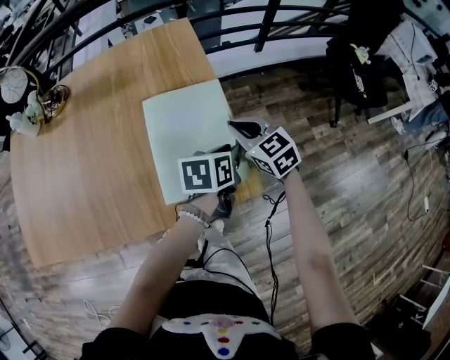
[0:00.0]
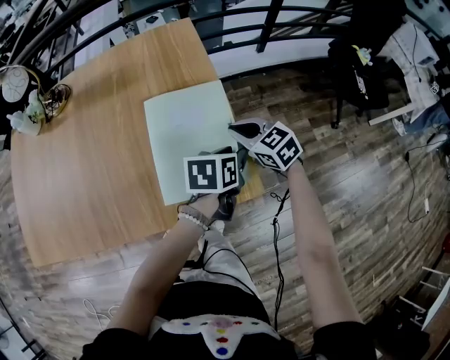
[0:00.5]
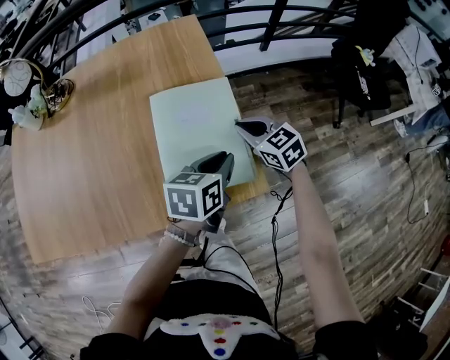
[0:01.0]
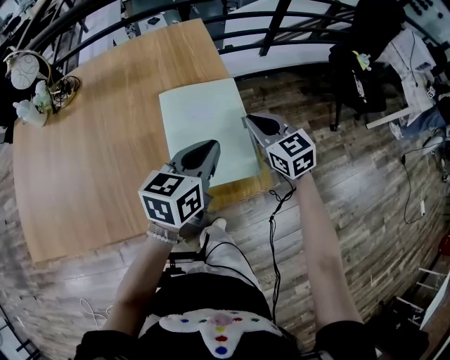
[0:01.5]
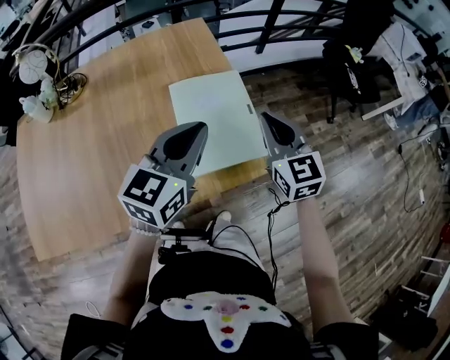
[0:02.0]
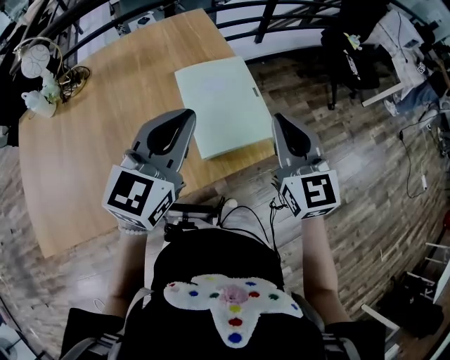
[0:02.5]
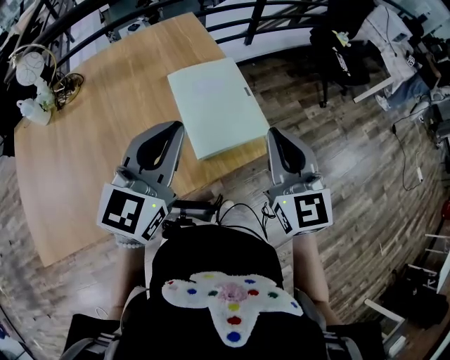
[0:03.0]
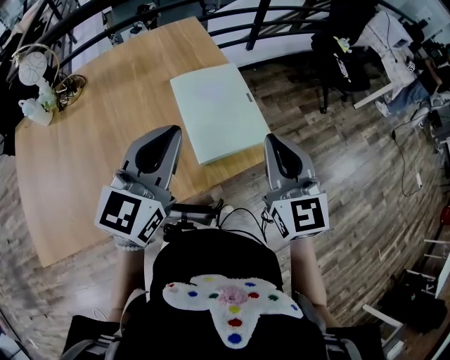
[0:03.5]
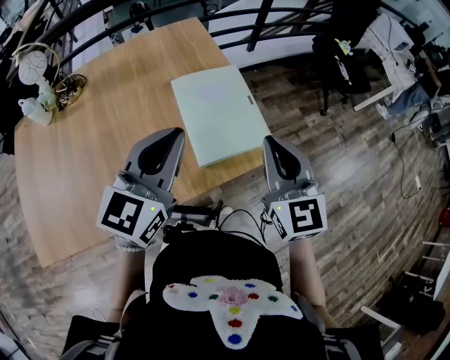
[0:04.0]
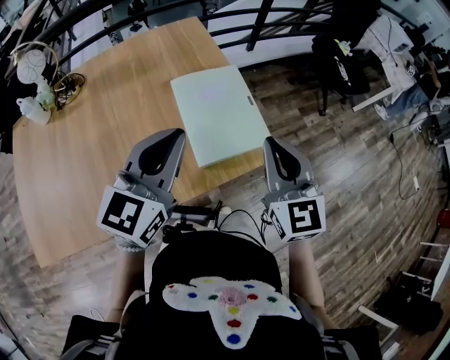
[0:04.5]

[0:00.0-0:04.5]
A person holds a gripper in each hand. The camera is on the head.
0:00.0 to 0:02.0: The left gripper goes roughly 25 cm upward and to the left, rotates approximately 50 degrees, and closes. The right gripper is displaced upward and backward by approximately 20 cm, and turns by some 30 degrees.
0:02.0 to 0:04.5: The left gripper is displaced backward and to the left by about 10 cm. Meanwhile the right gripper travels backward and upward by roughly 15 cm.

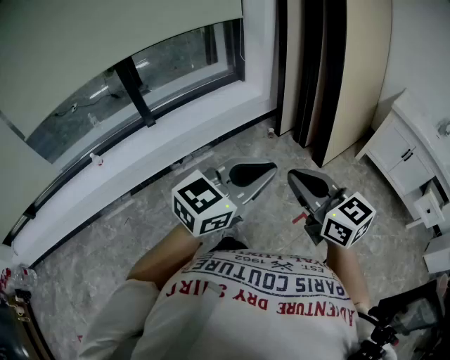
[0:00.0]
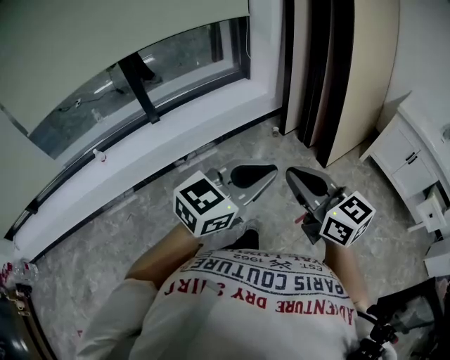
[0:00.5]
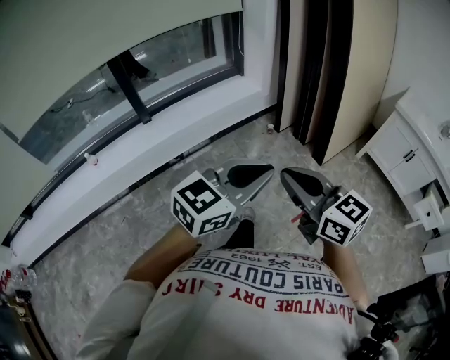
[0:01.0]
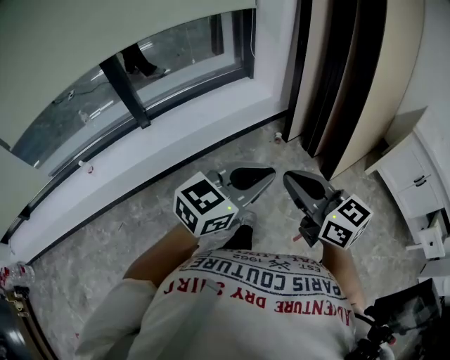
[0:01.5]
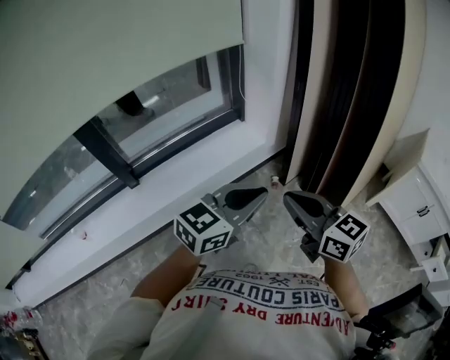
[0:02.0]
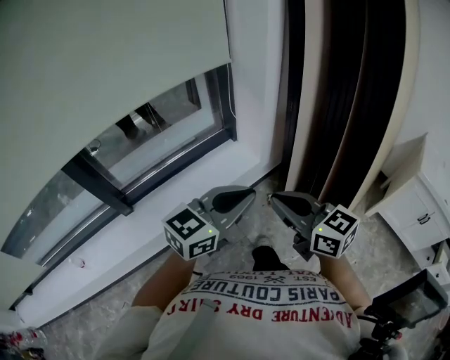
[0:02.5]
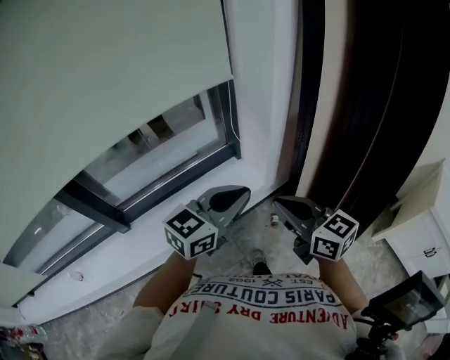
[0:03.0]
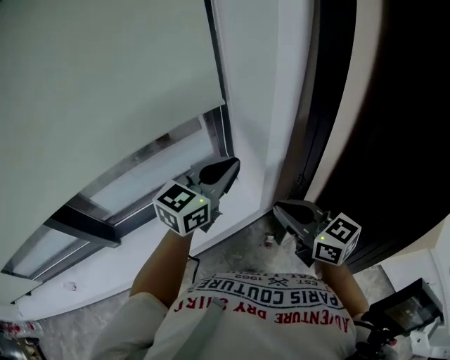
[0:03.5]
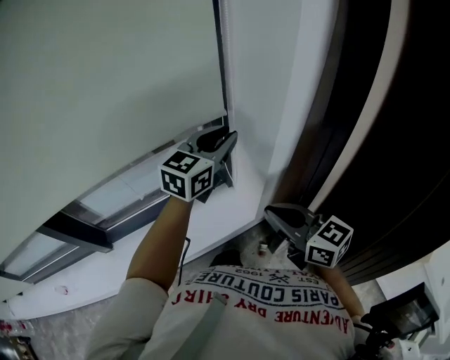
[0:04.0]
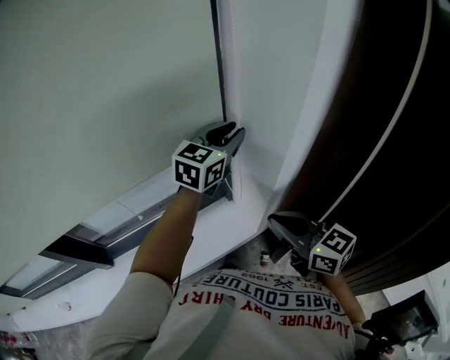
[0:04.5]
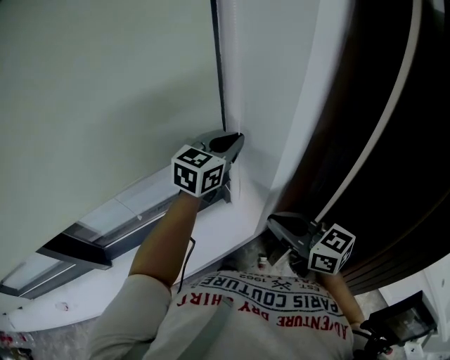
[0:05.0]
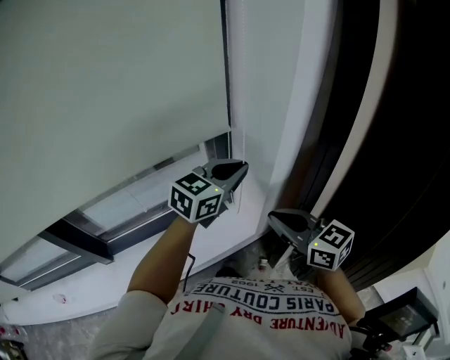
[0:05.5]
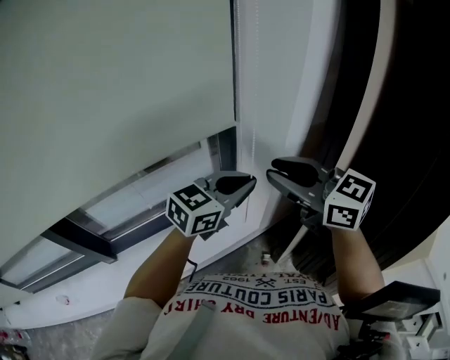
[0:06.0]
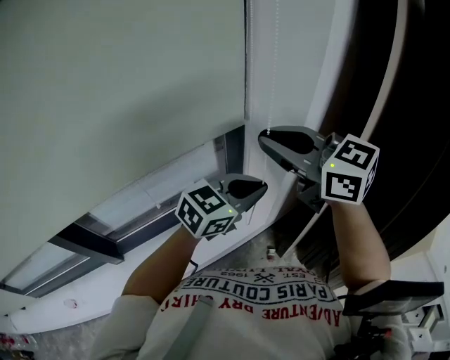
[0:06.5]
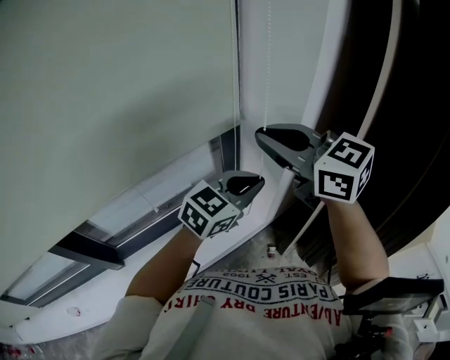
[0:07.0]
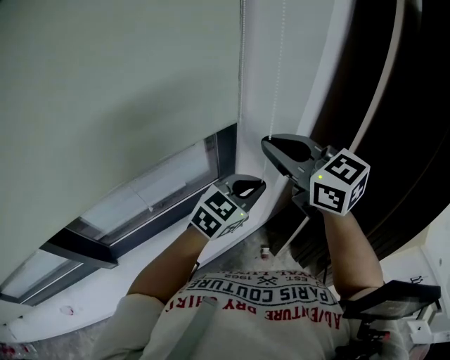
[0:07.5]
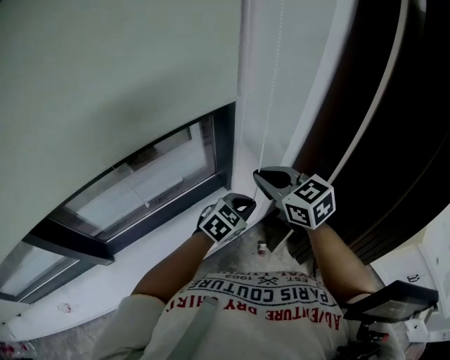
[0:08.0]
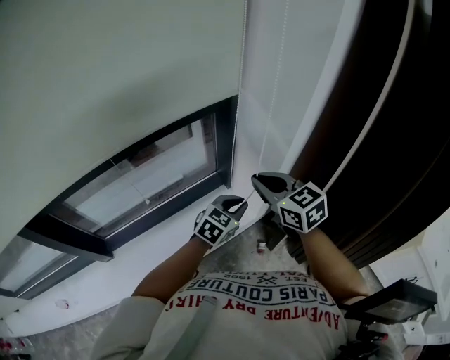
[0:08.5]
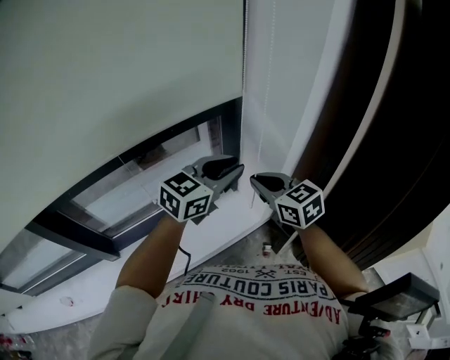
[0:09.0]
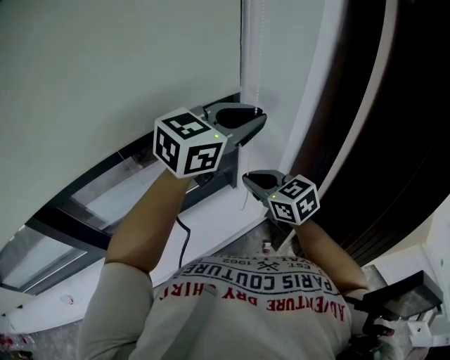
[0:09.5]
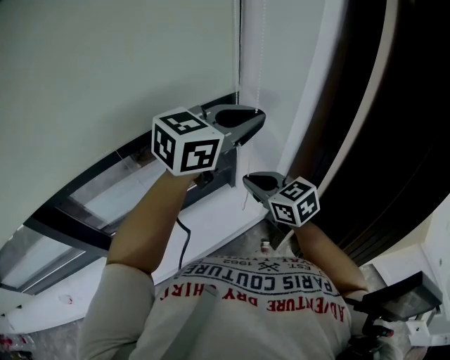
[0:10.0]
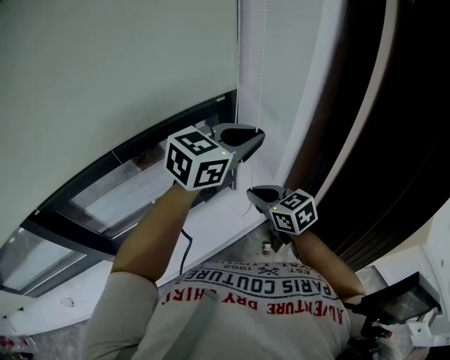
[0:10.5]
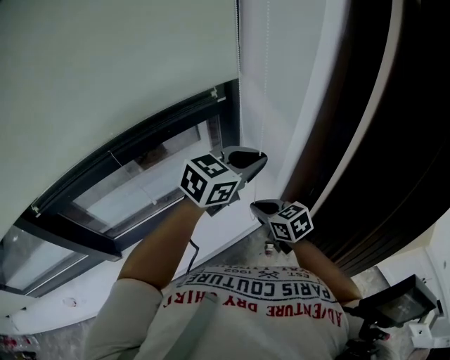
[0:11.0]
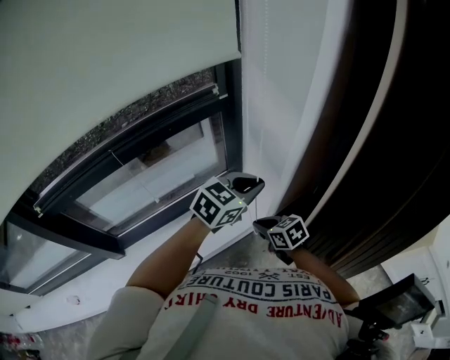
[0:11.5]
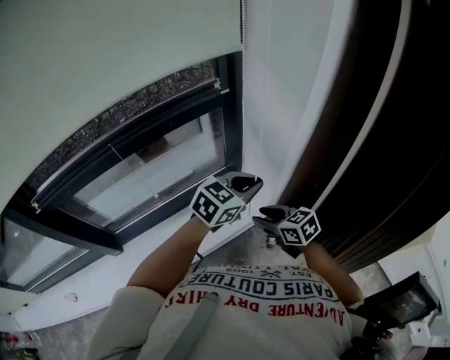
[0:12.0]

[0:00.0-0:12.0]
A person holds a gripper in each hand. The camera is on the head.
0:00.0 to 0:02.0: The pair of grippers is taken forward, about 40 cm.
0:02.0 to 0:04.0: Both grippers are carried forward, approximately 50 cm. The left gripper rotates some 30 degrees, and opens its fingers.
0:04.0 to 0:06.0: The right gripper is displaced upward by roughly 15 cm, and opens its fingers. The left gripper is displaced backward by approximately 15 cm, and turns by roughly 20 degrees.
0:06.0 to 0:08.0: The right gripper heads downward, covering roughly 10 cm, turns by approximately 20 degrees, and closes up. The left gripper travels downward by roughly 15 cm, and swivels approximately 20 degrees.
0:08.0 to 0:10.0: The left gripper is displaced upward by approximately 30 cm, and swivels approximately 30 degrees, while the right gripper shifts by roughly 5 cm.
0:10.0 to 0:12.0: The right gripper shifts about 15 cm downward and backward, and opens; the left gripper moves downward, approximately 20 cm.

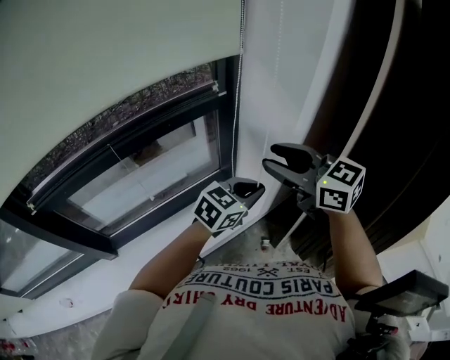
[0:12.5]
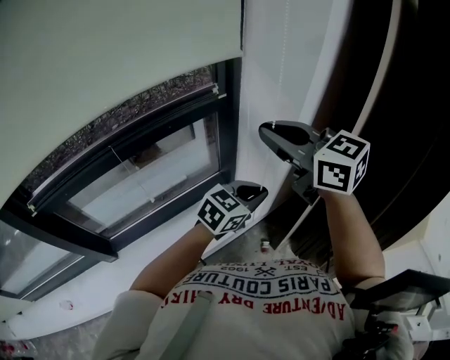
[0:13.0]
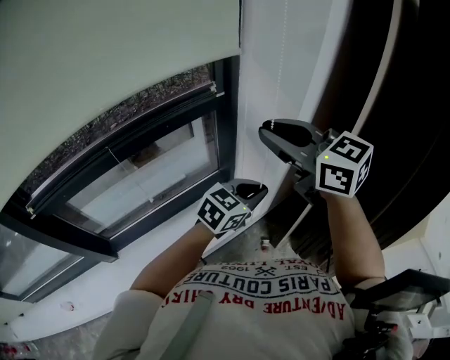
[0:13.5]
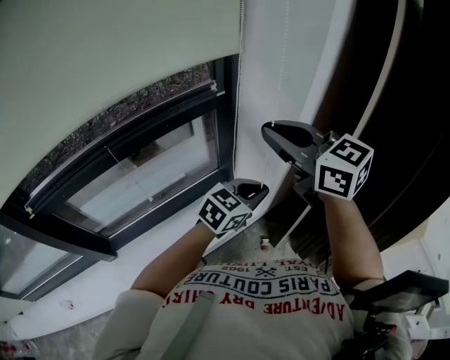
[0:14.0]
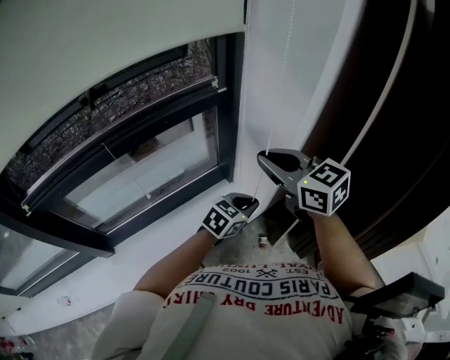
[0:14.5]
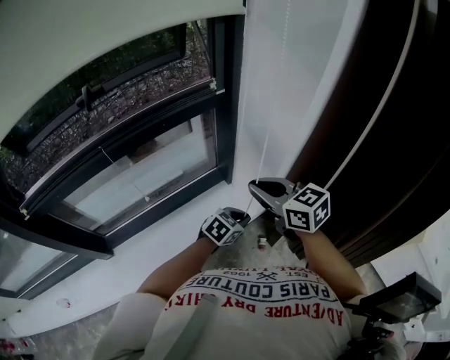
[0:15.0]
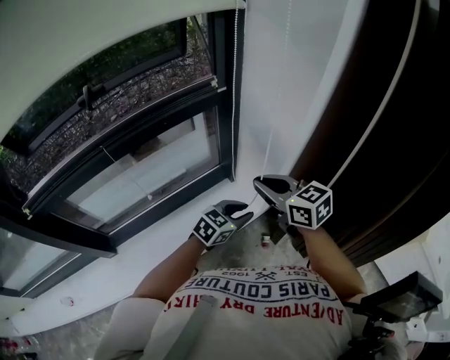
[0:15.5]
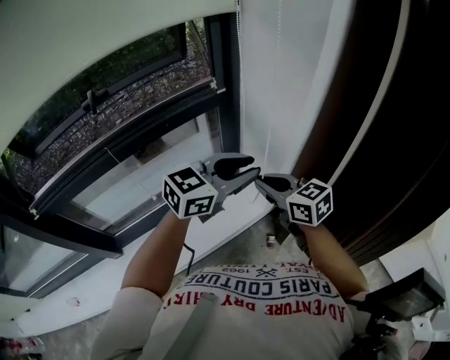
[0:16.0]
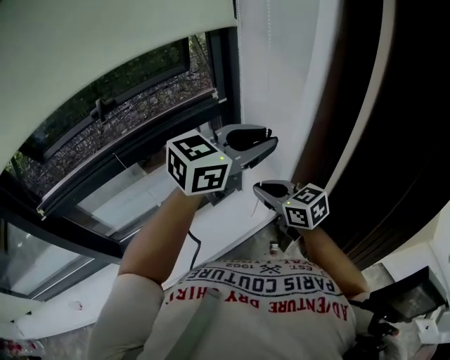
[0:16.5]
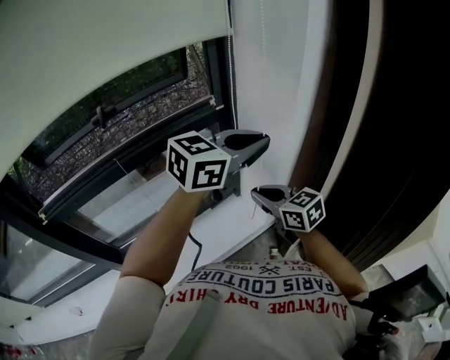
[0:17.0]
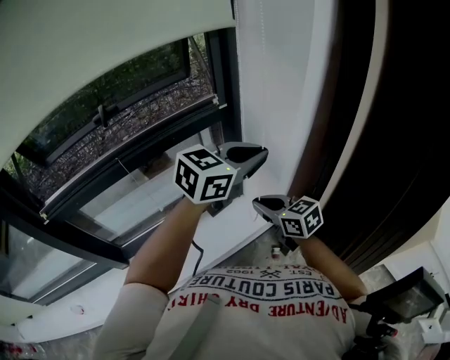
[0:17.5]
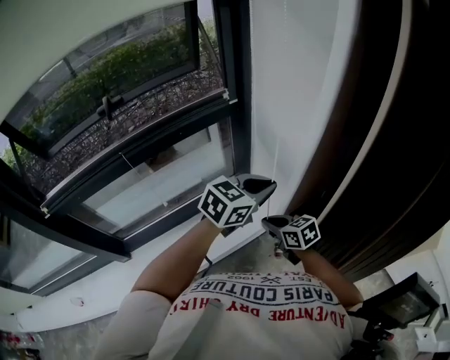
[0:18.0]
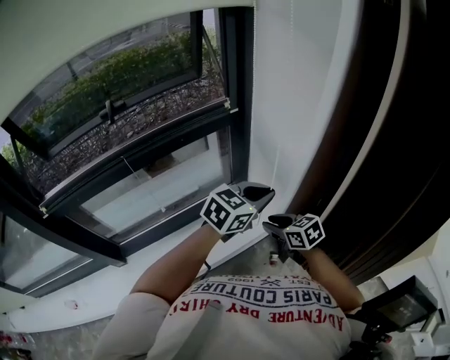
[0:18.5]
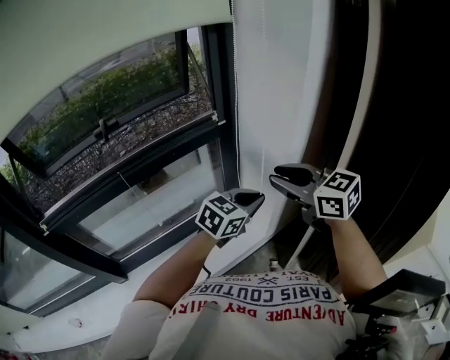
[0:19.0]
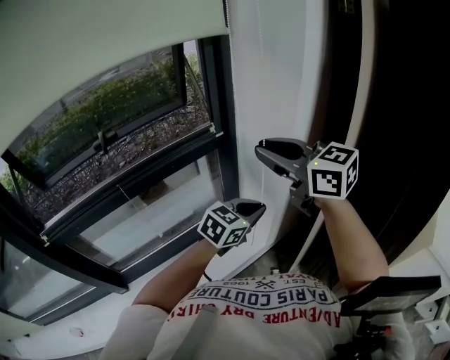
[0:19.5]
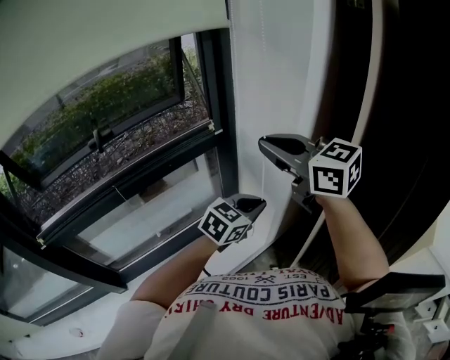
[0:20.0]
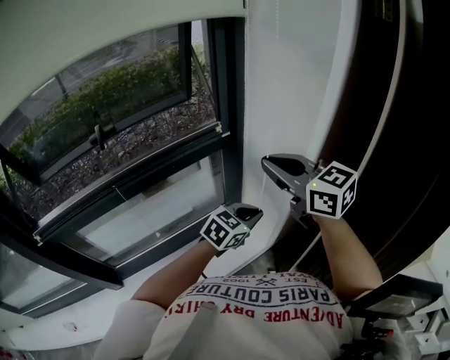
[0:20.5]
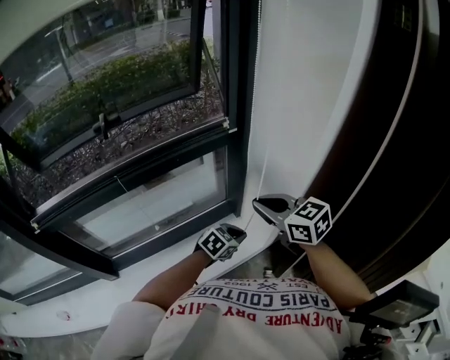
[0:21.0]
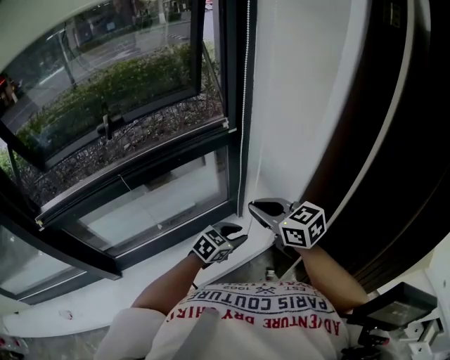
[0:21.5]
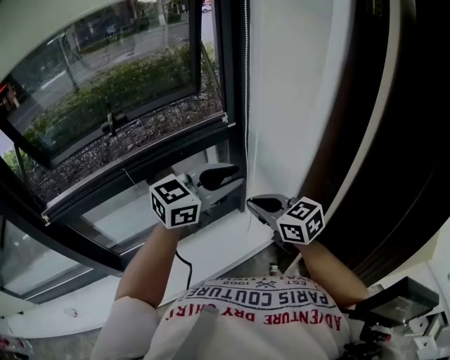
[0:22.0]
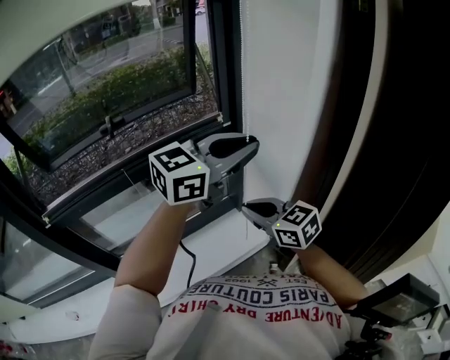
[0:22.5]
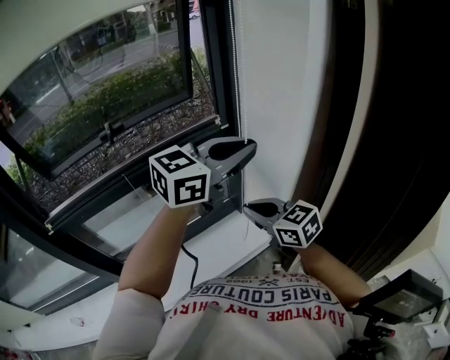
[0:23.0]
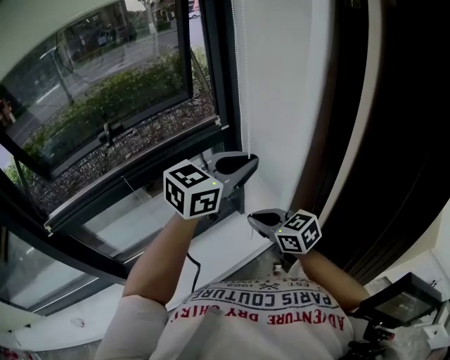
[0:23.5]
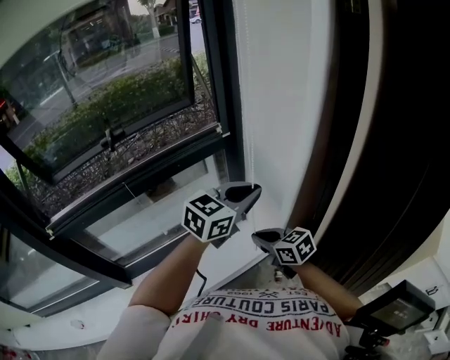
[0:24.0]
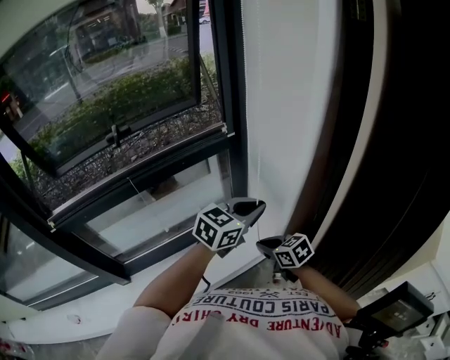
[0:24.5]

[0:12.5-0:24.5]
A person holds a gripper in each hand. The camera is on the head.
0:12.5 to 0:14.5: The right gripper changes place by approximately 5 cm, and closes, while the left gripper goes some 10 cm downward.
0:14.5 to 0:16.5: The left gripper is displaced upward by about 30 cm, and turns by about 30 degrees. The right gripper goes roughly 10 cm downward.
0:16.5 to 0:18.5: Both grippers travel together downward, roughly 15 cm. The right gripper opens.
0:18.5 to 0:20.5: The right gripper goes about 30 cm upward, turns by about 30 degrees, and closes up, while the left gripper travels downward by about 5 cm.
0:20.5 to 0:22.5: The left gripper travels upward by about 25 cm, turns by approximately 30 degrees, and opens, then closes once more; the right gripper moves downward and backward, roughly 15 cm.
0:22.5 to 0:24.5: The two grippers go roughly 20 cm downward. The right gripper changes its angle by about 20 degrees.
